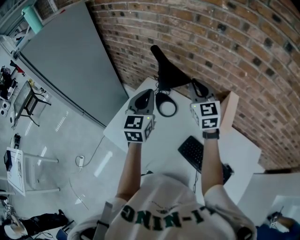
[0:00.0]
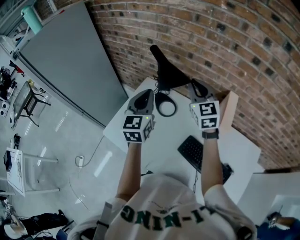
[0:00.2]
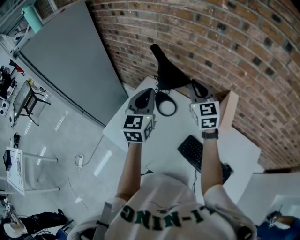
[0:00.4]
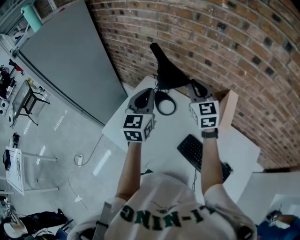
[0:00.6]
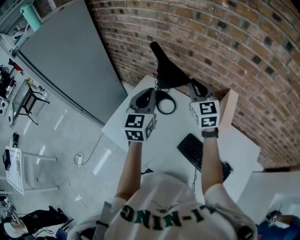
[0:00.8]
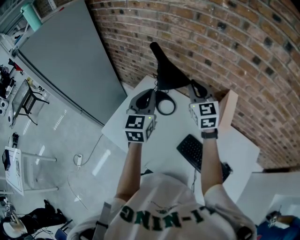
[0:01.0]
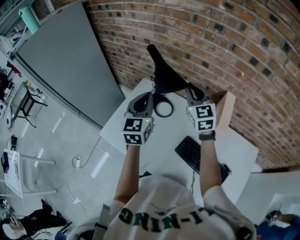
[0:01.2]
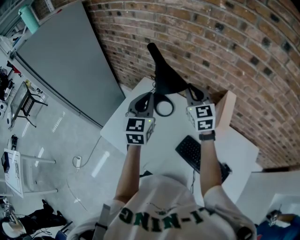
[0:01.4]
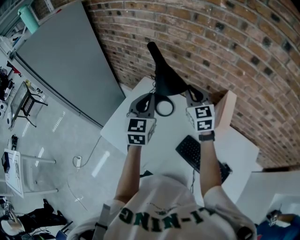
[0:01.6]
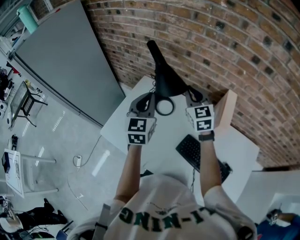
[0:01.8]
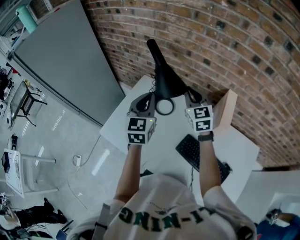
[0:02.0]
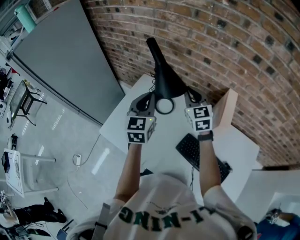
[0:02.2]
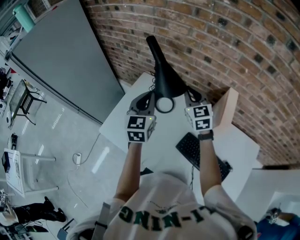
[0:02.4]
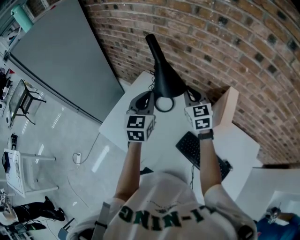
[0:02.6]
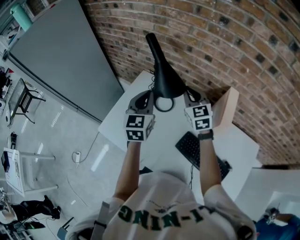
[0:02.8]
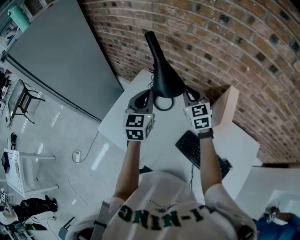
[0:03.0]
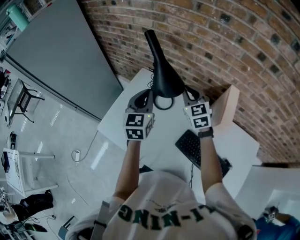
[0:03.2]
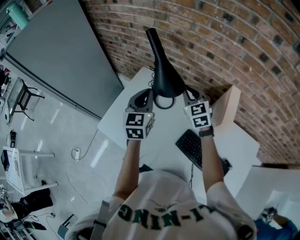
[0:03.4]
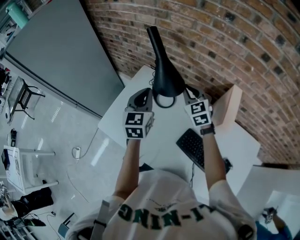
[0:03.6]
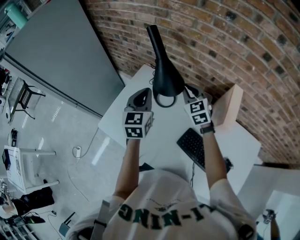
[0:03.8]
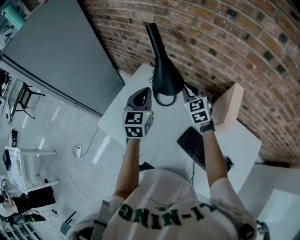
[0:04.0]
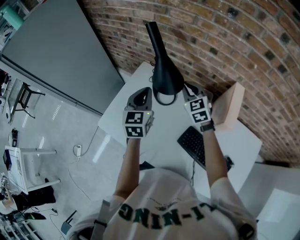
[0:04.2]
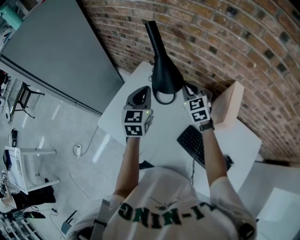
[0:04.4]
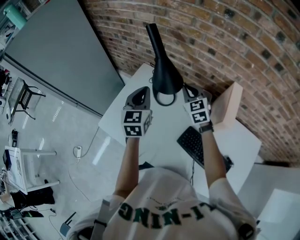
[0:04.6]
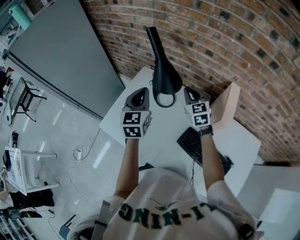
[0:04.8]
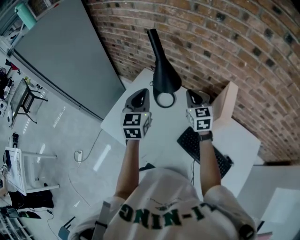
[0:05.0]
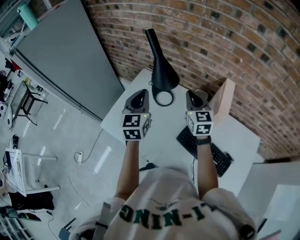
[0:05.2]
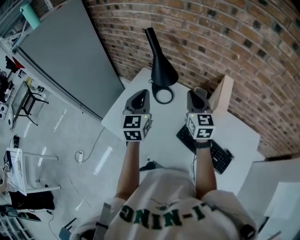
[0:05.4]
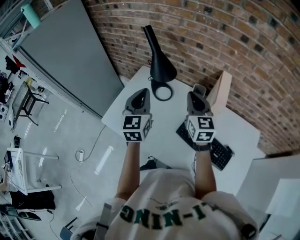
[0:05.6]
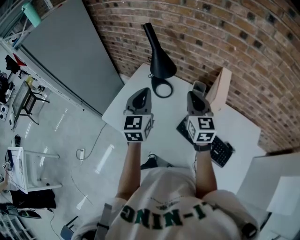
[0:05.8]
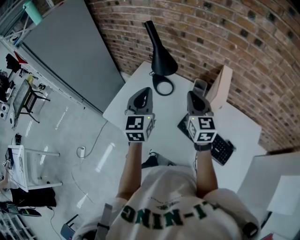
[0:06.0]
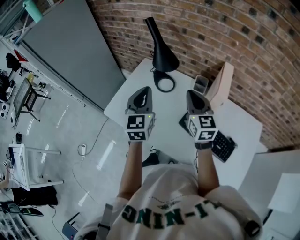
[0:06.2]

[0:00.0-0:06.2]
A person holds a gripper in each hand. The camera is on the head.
0:00.0 to 0:01.6: The grippers move only a little.
0:01.6 to 0:03.2: The right gripper travels downward by about 5 cm.
0:03.2 to 0:04.6: The grippers stay close to where they were, moving slightly.
0:04.6 to 0:06.2: The left gripper goes approximately 15 cm backward, while the right gripper shifts approximately 20 cm backward and upward, and turns by roughly 20 degrees.

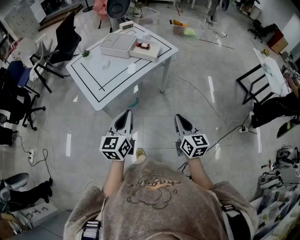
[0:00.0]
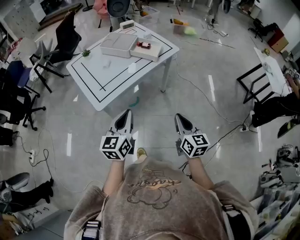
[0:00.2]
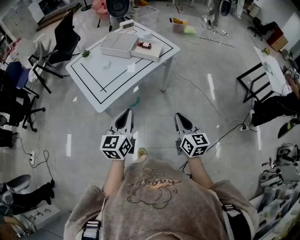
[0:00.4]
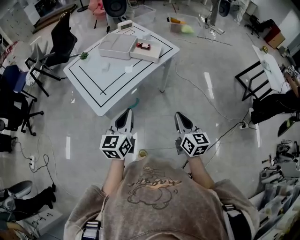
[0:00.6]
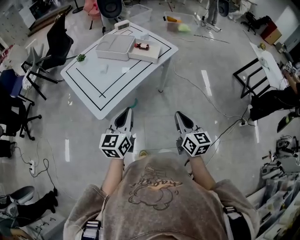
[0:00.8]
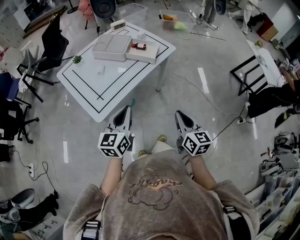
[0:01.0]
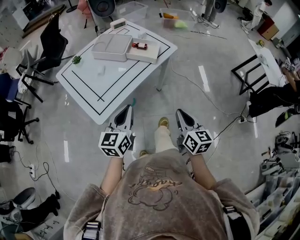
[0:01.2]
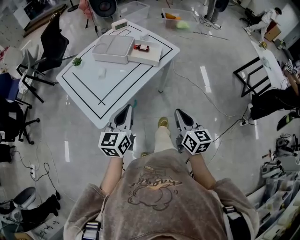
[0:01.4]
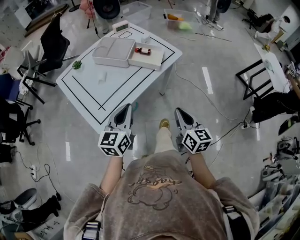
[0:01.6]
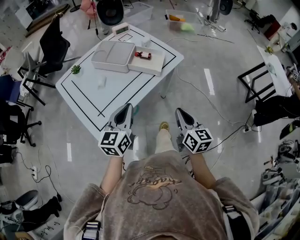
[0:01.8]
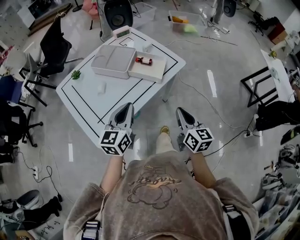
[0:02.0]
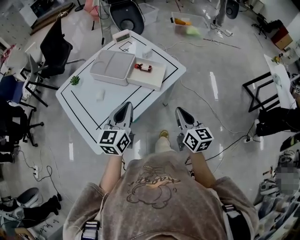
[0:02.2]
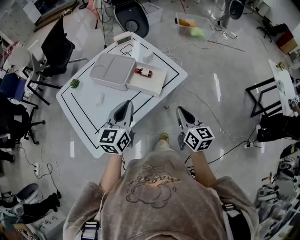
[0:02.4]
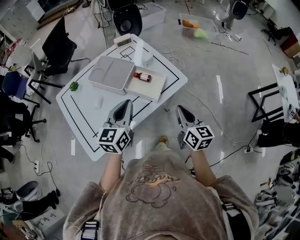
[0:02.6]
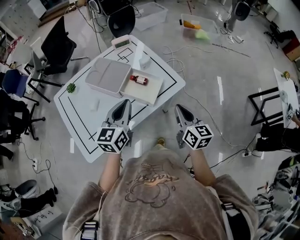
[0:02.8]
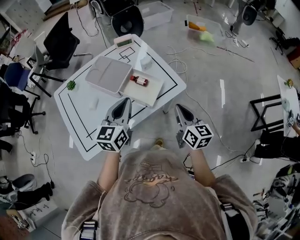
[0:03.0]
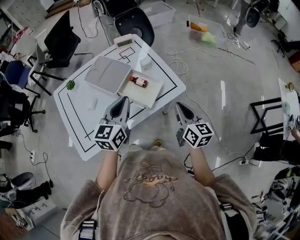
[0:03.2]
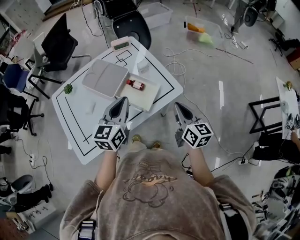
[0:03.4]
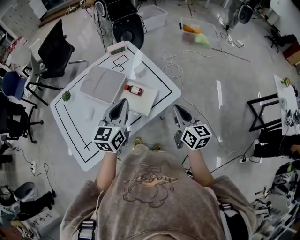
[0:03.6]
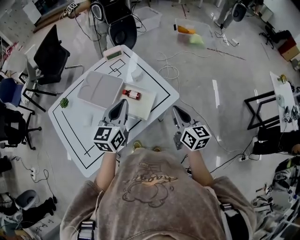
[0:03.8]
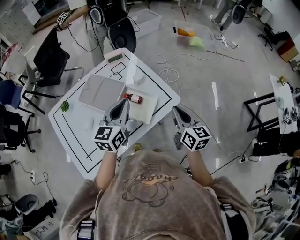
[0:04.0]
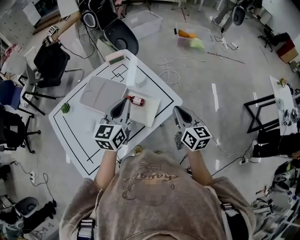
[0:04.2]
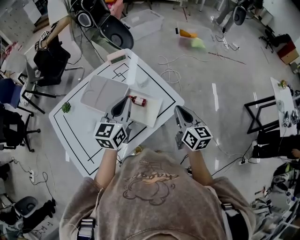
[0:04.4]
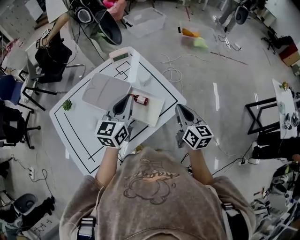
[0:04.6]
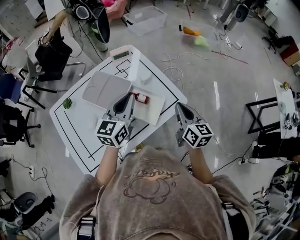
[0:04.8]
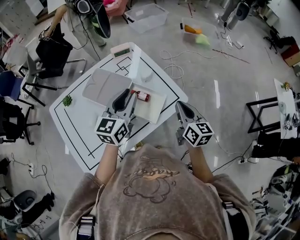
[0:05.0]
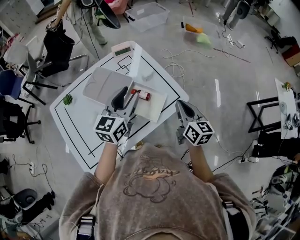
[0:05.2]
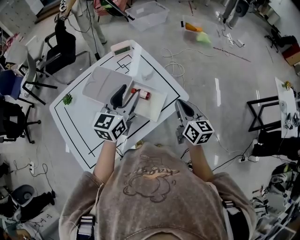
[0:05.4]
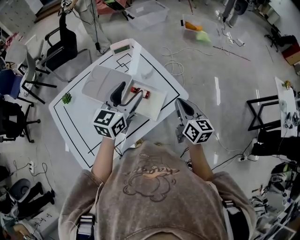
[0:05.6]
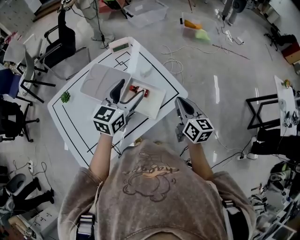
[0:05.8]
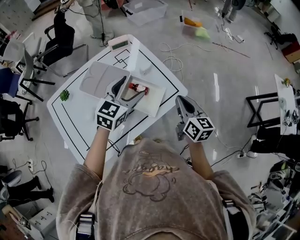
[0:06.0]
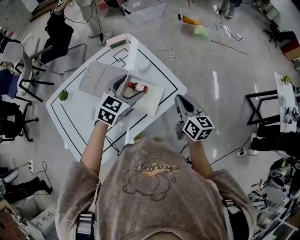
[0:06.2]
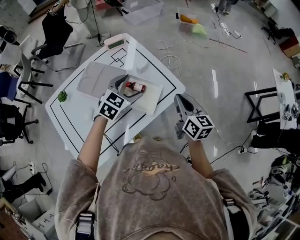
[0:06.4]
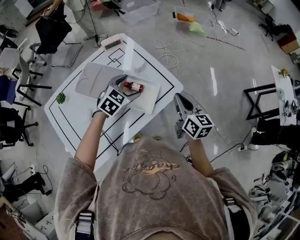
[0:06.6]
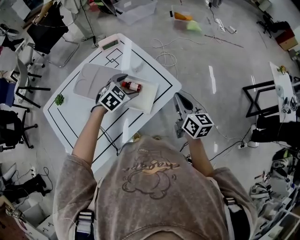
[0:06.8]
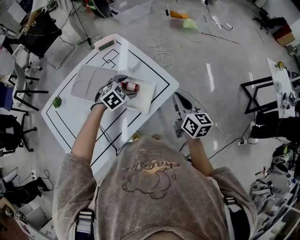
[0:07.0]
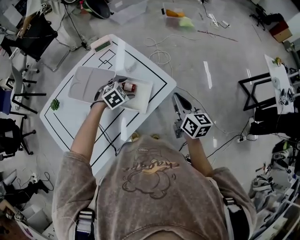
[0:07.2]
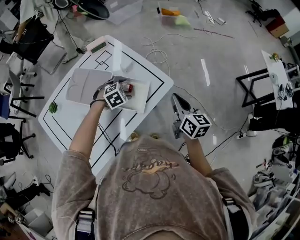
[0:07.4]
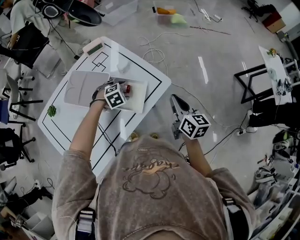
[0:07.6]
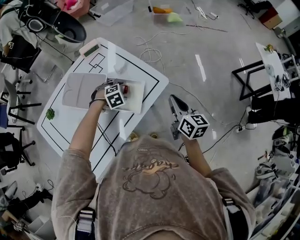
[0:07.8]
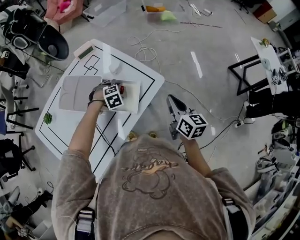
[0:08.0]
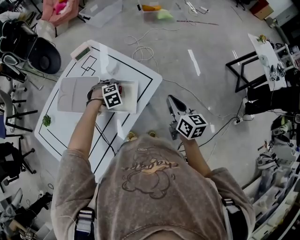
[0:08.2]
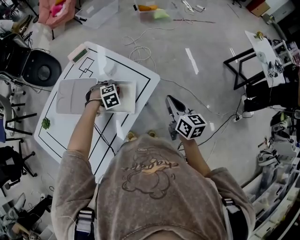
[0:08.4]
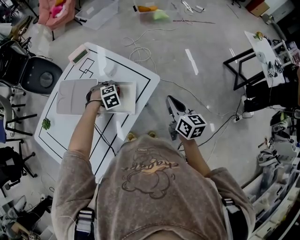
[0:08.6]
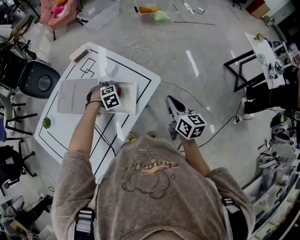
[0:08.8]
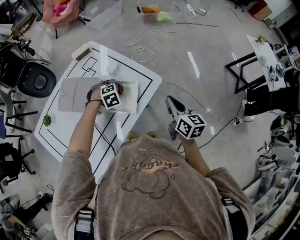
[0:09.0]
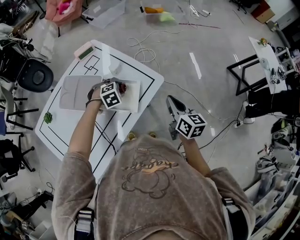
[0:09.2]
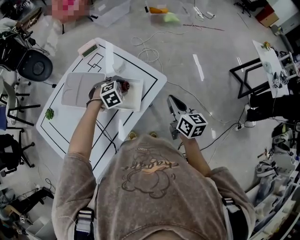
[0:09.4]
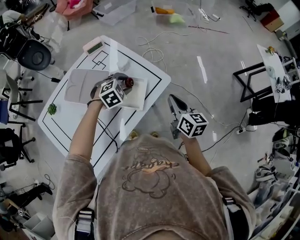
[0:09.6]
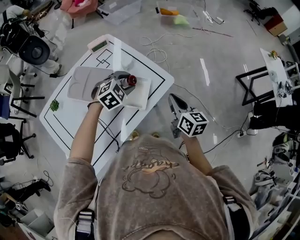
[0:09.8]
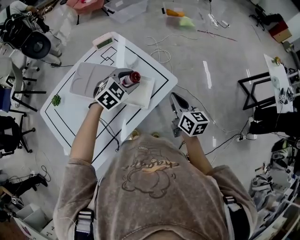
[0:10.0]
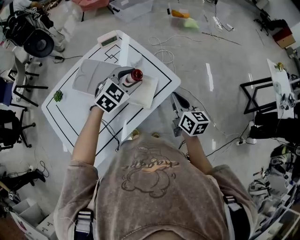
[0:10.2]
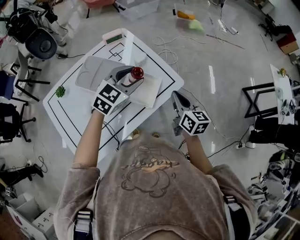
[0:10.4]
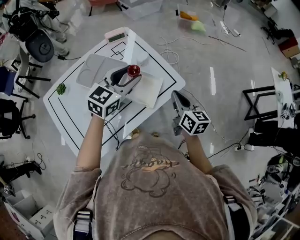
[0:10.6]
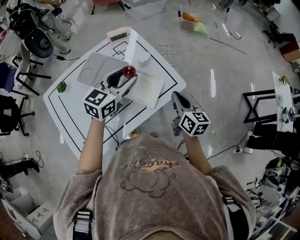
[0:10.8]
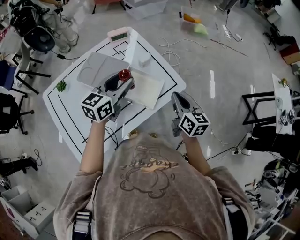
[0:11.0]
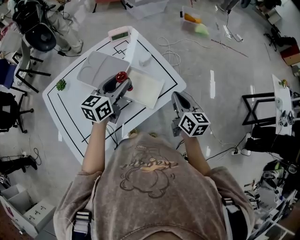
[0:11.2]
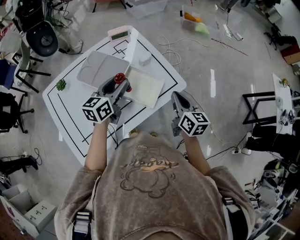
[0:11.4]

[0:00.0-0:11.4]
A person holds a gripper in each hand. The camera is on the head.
0:00.0 to 0:01.4: Both grippers travel together forward, about 10 cm.
0:01.4 to 0:02.8: Both grippers travel together forward, approximately 30 cm.
0:02.8 to 0:04.2: Both grippers move forward, approximately 10 cm.
0:04.2 to 0:05.6: The left gripper opens up.
0:05.6 to 0:07.2: The left gripper travels downward by approximately 20 cm, and tips its fingers downward by approximately 50 degrees.
0:07.2 to 0:08.6: The left gripper moves downward, some 5 cm, turns by some 30 degrees, and closes up. The right gripper changes place by about 5 cm.
0:08.6 to 0:10.0: The right gripper travels to the left by roughly 5 cm. Meanwhile the left gripper heads upward, covering approximately 15 cm, and tilts its fingers some 30 degrees upward.
0:10.0 to 0:11.4: The left gripper heads to the left, covering roughly 10 cm, and rotates around the line of its fingers by roughly 50 degrees, counterclockwise from behind.

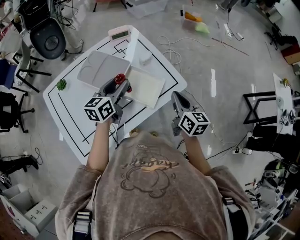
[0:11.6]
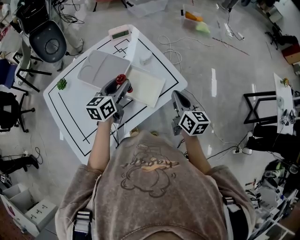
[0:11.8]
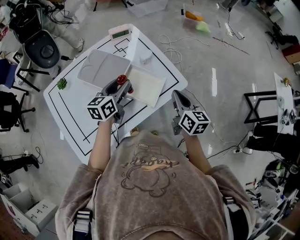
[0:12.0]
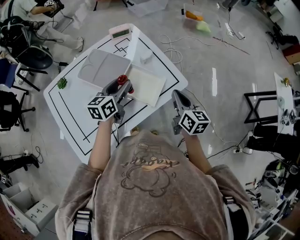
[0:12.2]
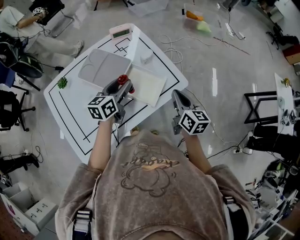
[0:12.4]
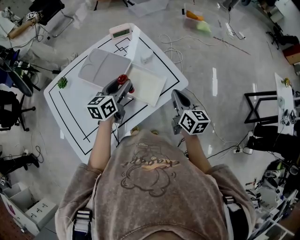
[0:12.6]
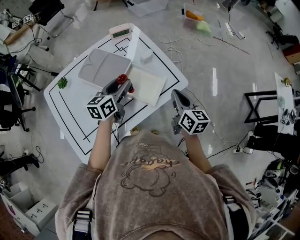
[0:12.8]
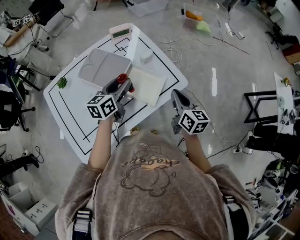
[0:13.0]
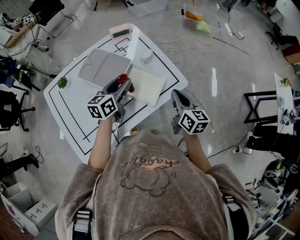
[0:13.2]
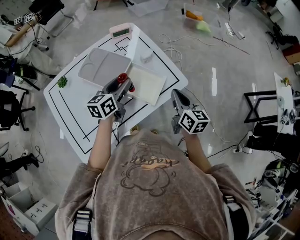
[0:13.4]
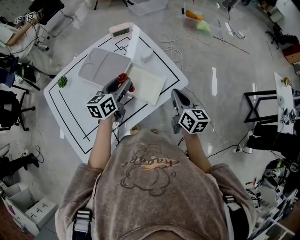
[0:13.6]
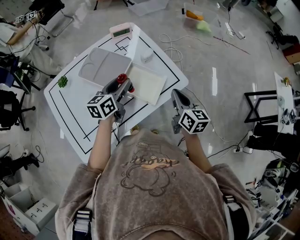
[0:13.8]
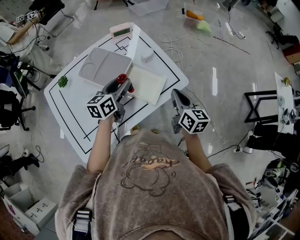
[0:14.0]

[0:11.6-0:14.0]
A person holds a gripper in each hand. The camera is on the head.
0:11.6 to 0:12.8: The grippers stay close to where they were, moving slightly.
0:12.8 to 0:14.0: Both grippers stay about where they are.

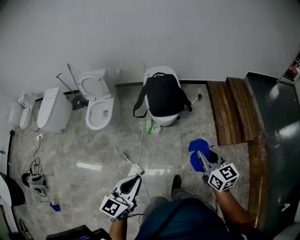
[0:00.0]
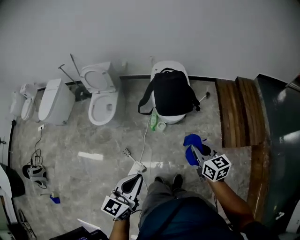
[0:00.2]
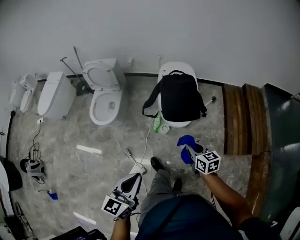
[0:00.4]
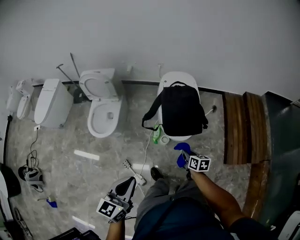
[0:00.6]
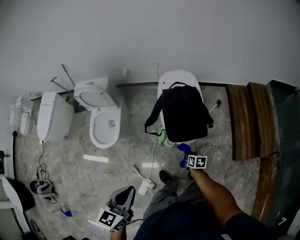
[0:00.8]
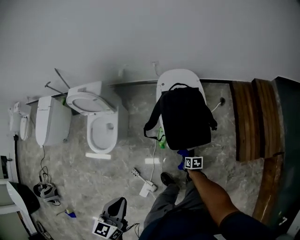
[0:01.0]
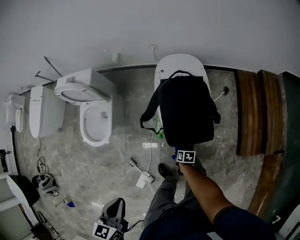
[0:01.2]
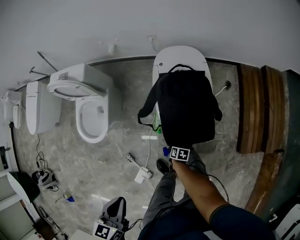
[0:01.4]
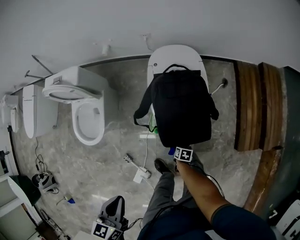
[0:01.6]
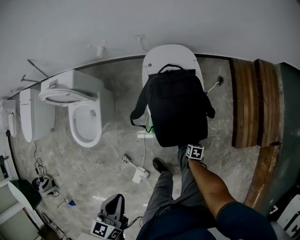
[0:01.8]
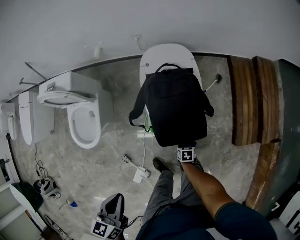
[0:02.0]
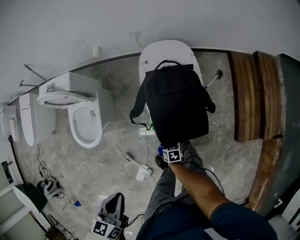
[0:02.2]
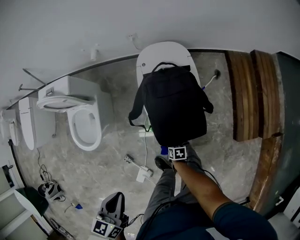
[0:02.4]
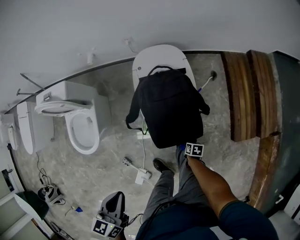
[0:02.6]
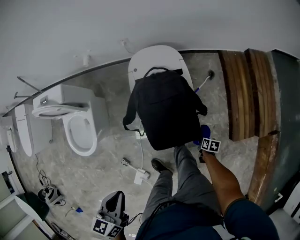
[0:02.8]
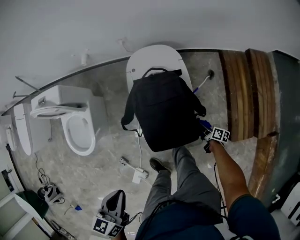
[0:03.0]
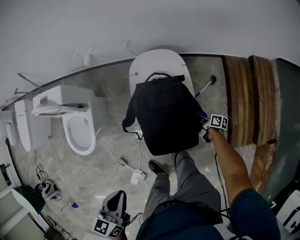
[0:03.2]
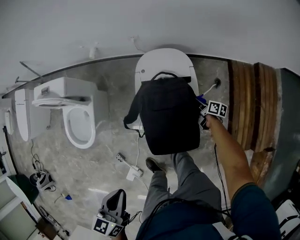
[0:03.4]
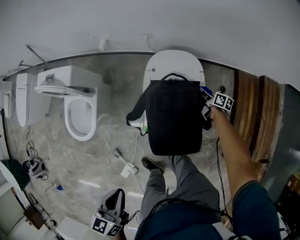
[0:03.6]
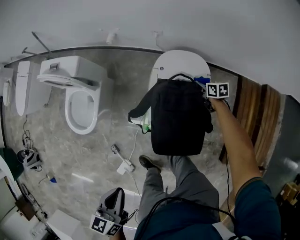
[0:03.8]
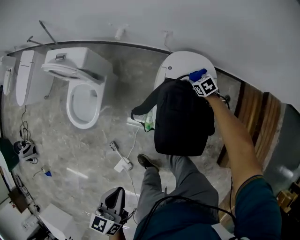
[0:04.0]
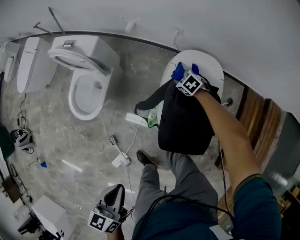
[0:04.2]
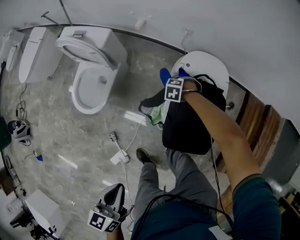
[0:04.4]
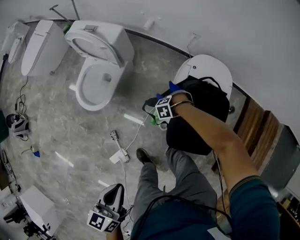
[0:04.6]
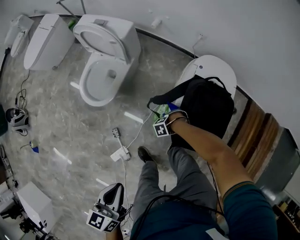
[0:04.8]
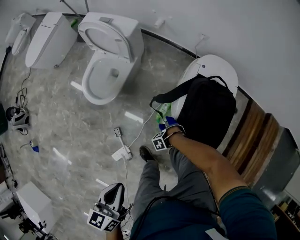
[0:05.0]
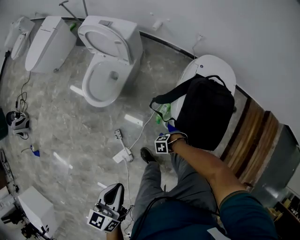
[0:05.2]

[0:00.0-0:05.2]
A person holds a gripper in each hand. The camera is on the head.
0:00.0 to 0:01.8: The left gripper moves approximately 50 cm, and turns by roughly 30 degrees. The right gripper travels downward by roughly 60 cm, and points its fingers about 60 degrees further downward.
0:01.8 to 0:03.4: The right gripper ends up about 35 cm from where it was, and tilts its fingers roughly 40 degrees upward, while the left gripper changes place by roughly 10 cm.
0:03.4 to 0:05.2: The right gripper changes place by approximately 50 cm, and rotates some 150 degrees. The left gripper shifts by roughly 20 cm, and changes its angle by some 20 degrees.
